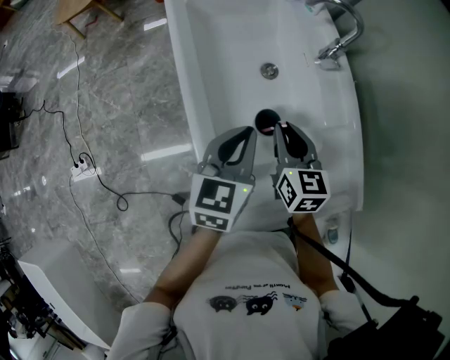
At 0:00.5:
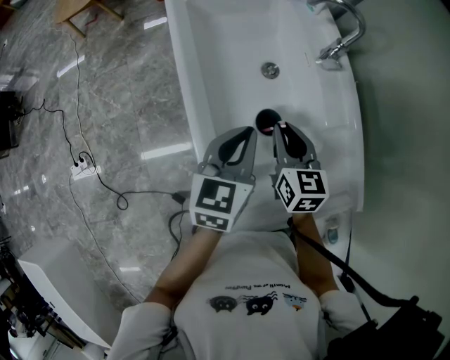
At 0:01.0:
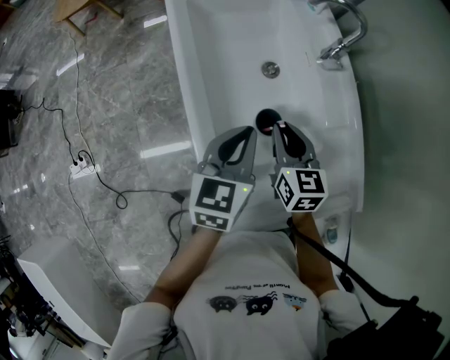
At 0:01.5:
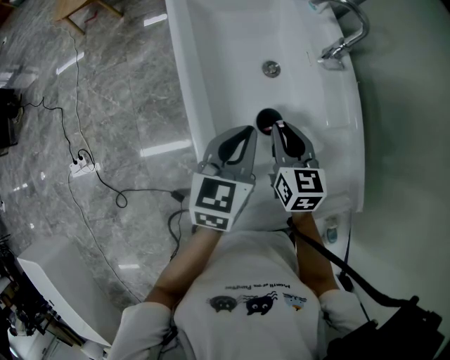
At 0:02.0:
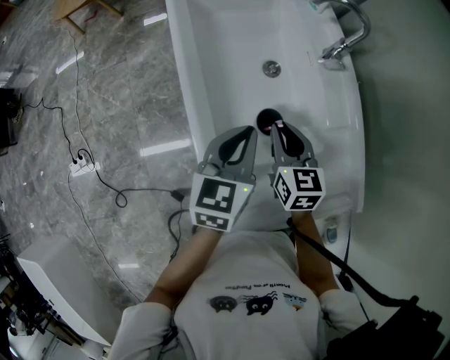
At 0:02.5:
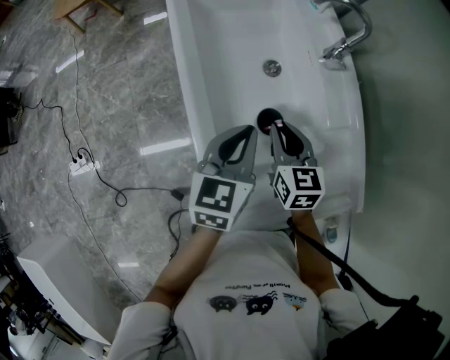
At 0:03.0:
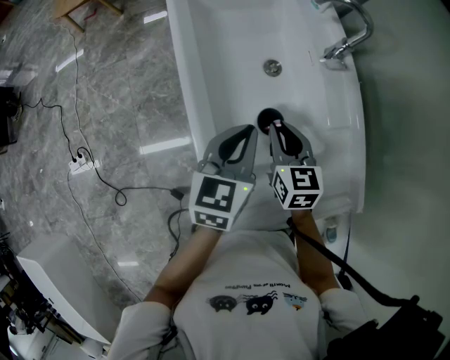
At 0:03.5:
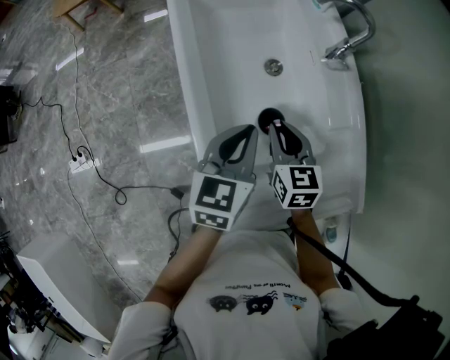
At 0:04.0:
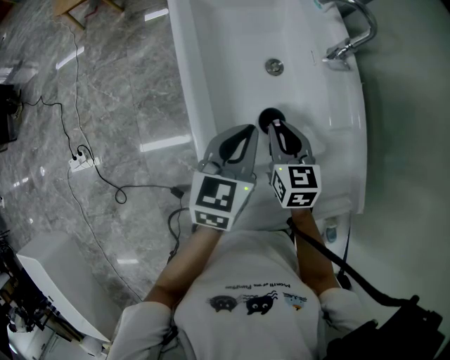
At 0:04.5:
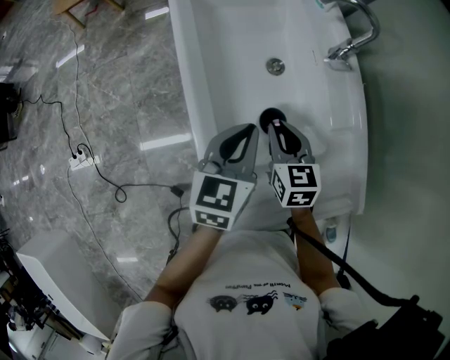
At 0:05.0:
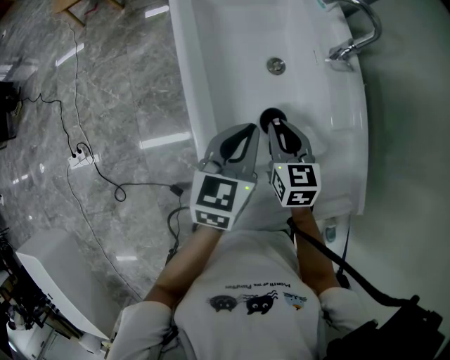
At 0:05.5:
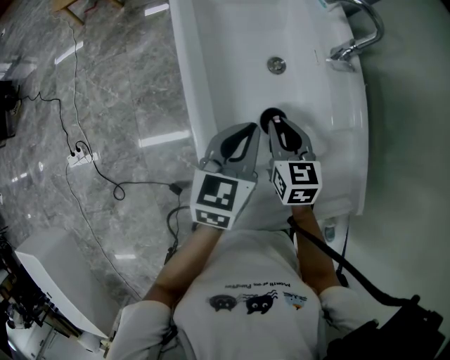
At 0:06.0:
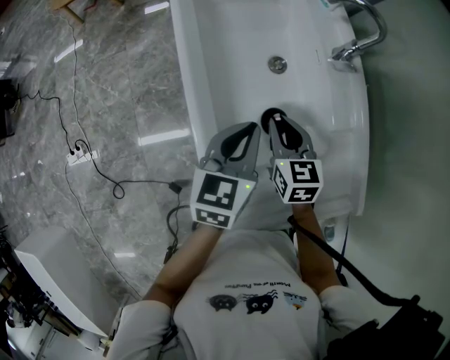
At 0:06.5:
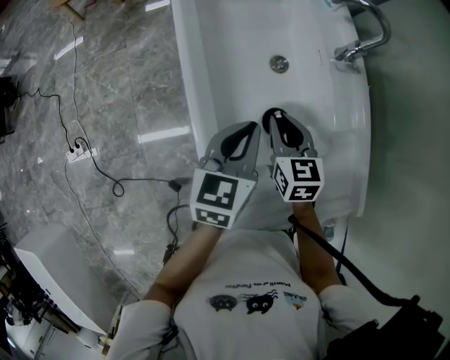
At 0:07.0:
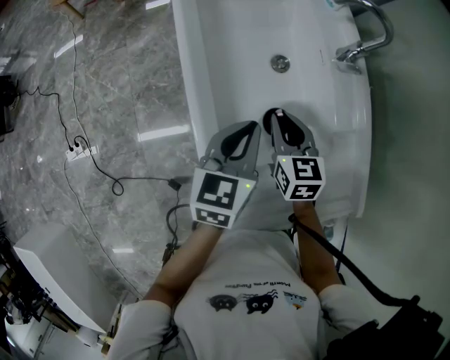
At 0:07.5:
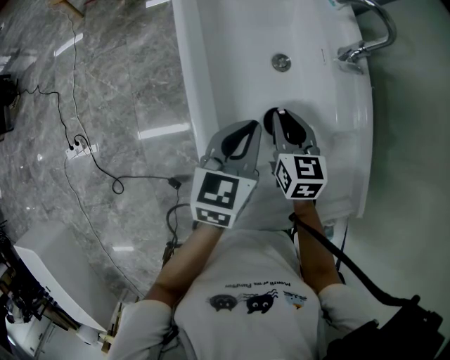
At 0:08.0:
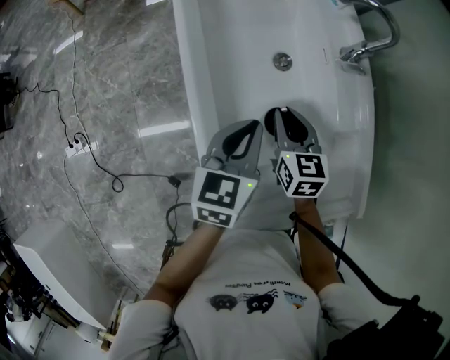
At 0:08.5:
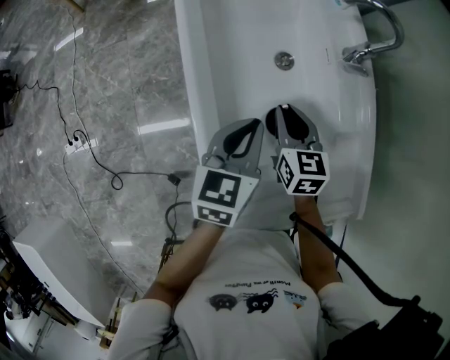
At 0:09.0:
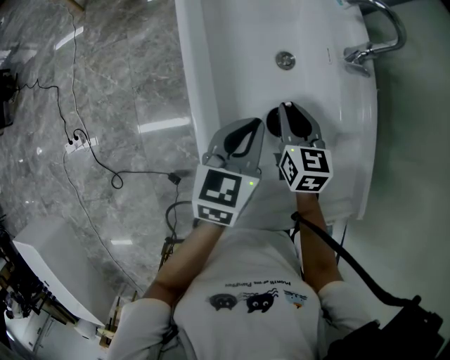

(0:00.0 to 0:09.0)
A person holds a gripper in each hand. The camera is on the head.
0:00.0 - 0:04.5: The grippers stay close to where they were, moving slightly.
0:04.5 - 0:09.0: The grippers move only a little.

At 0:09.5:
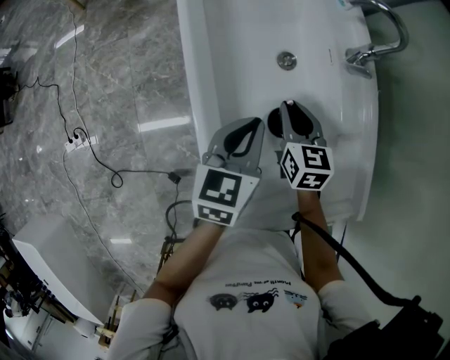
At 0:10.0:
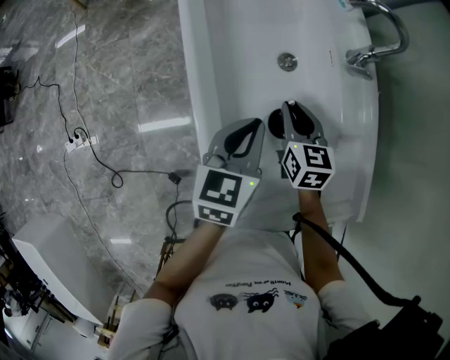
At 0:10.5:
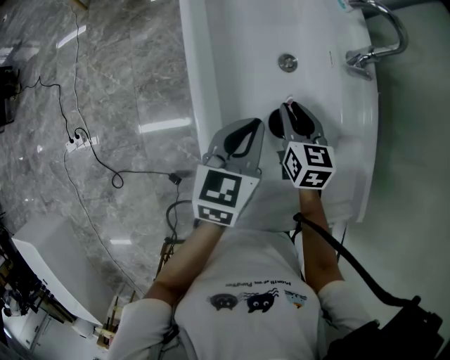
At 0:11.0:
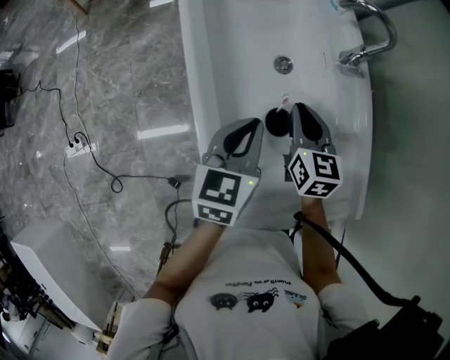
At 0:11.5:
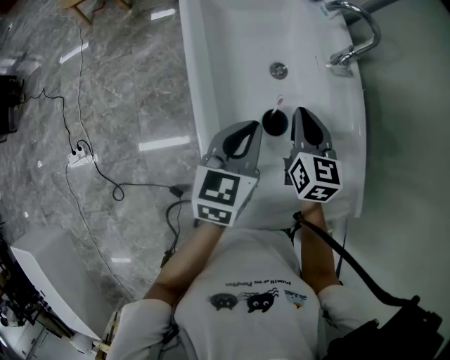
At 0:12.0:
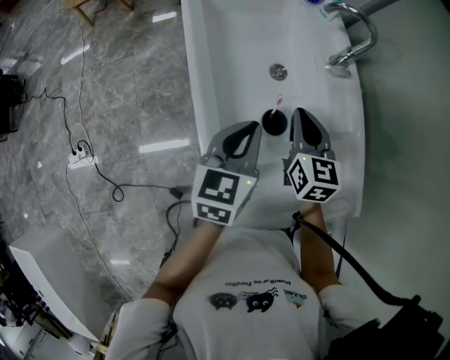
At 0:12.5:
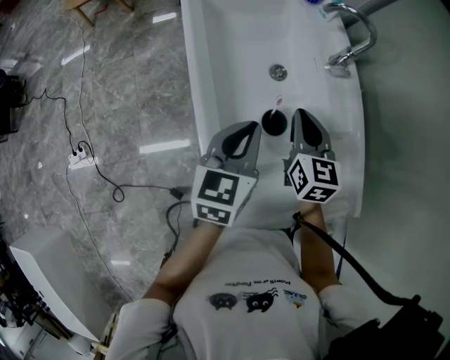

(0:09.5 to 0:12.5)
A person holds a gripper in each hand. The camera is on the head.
0:09.5 - 0:11.0: The grippers move only a little.
0:11.0 - 0:12.5: The grippers stay close to where they were, moving slightly.

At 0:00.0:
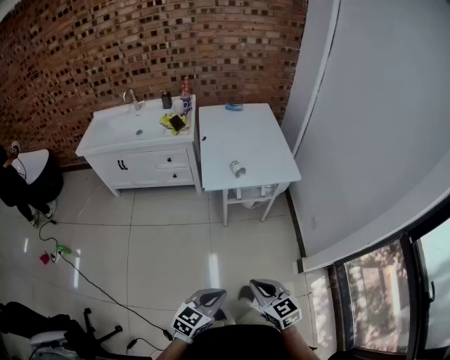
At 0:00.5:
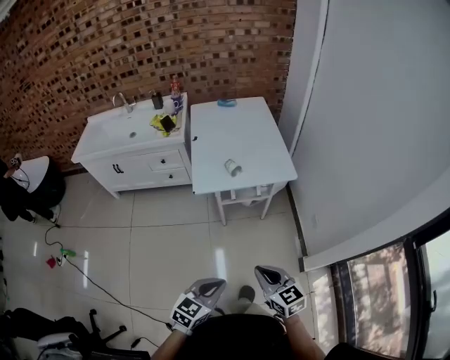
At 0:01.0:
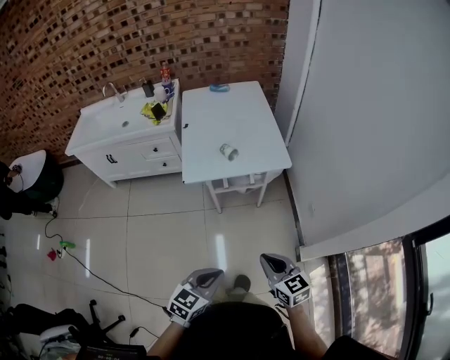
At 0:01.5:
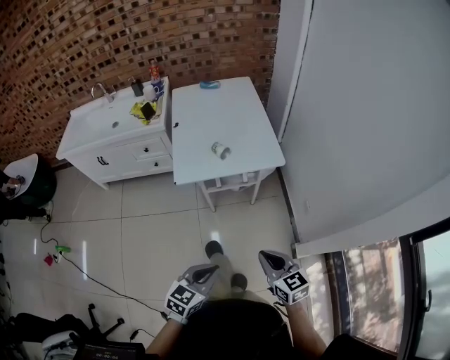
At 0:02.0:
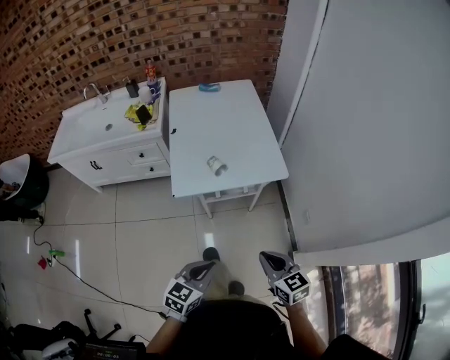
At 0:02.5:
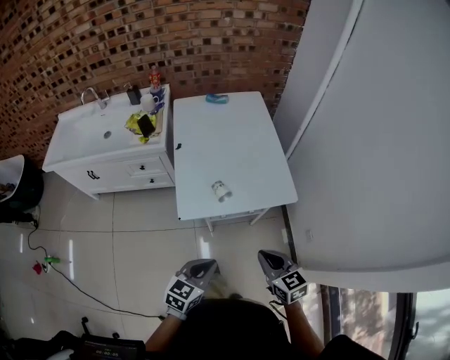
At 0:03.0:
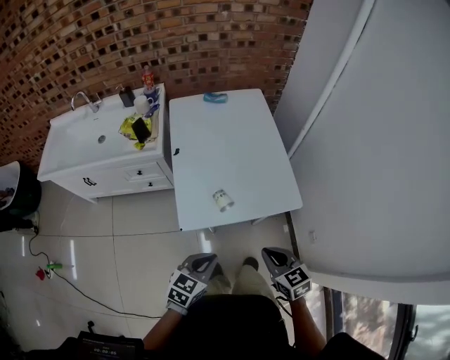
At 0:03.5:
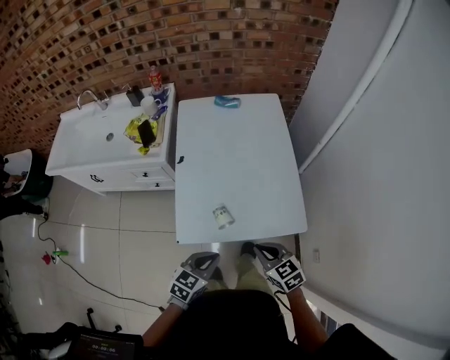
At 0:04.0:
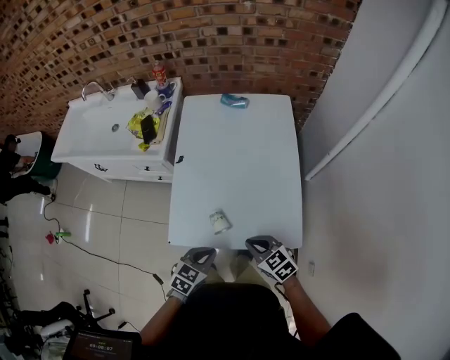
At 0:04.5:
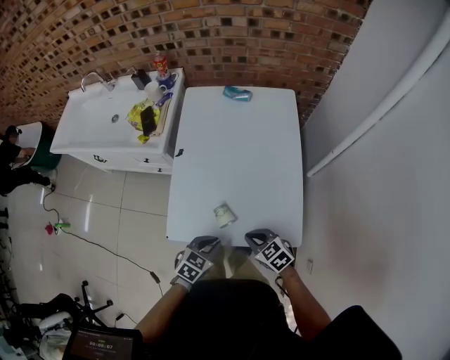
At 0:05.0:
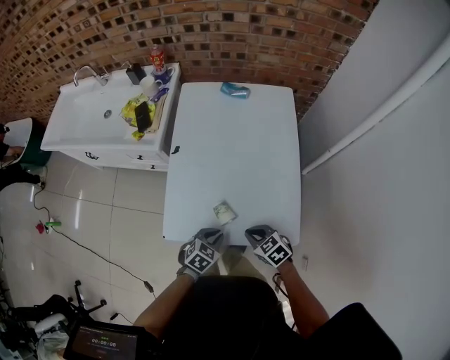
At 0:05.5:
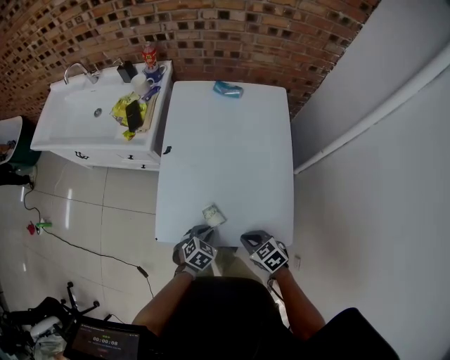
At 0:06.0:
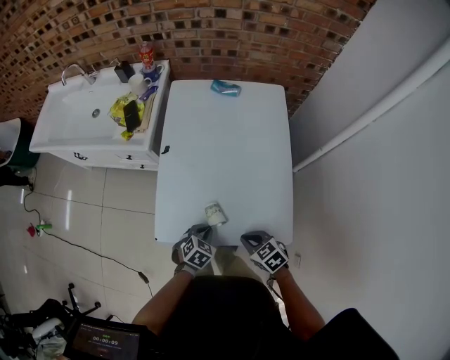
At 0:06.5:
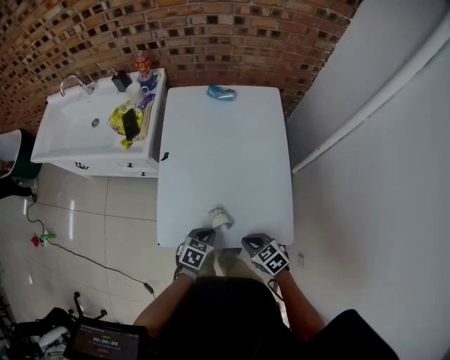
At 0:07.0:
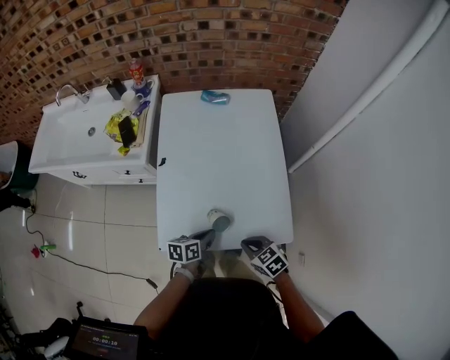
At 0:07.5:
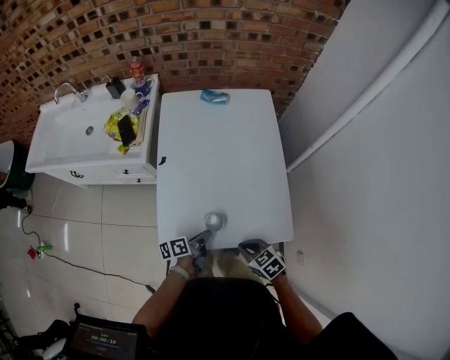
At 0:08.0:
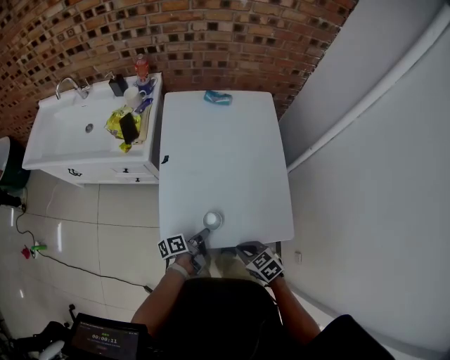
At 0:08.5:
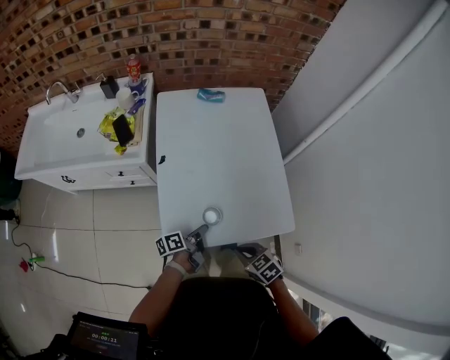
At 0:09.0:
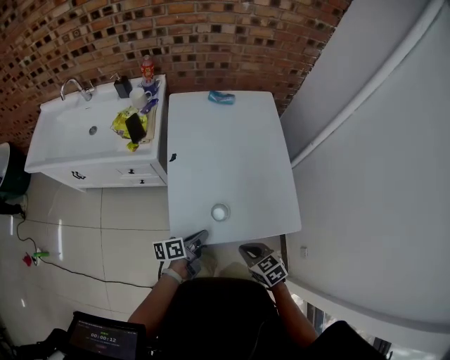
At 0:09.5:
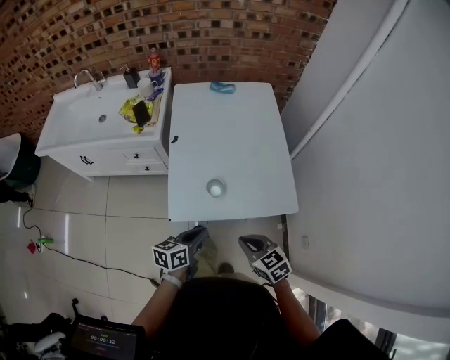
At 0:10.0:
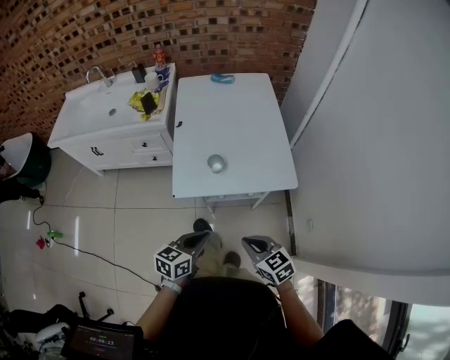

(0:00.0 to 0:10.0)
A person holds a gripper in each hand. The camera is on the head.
0:00.0 - 0:02.0: The right gripper is displaced forward and to the right by roughly 25 cm; the left gripper moves forward, approximately 25 cm.
0:02.0 - 0:04.0: Both grippers travel together forward, about 35 cm. The right gripper changes its angle by roughly 30 degrees.
0:04.0 - 0:06.0: The left gripper is displaced downward and forward by approximately 10 cm. Meanwhile the right gripper travels downward by approximately 5 cm.
0:06.0 - 0:08.0: The right gripper ends up roughly 5 cm from where it was. The left gripper rolls counterclockwise, seen from behind, by about 80 degrees.
0:08.0 - 0:10.0: The left gripper goes some 30 cm backward and upward, and rotates around the line of its fingers by roughly 60 degrees, clockwise from behind; the right gripper travels backward by approximately 20 cm, and swivels roughly 20 degrees.

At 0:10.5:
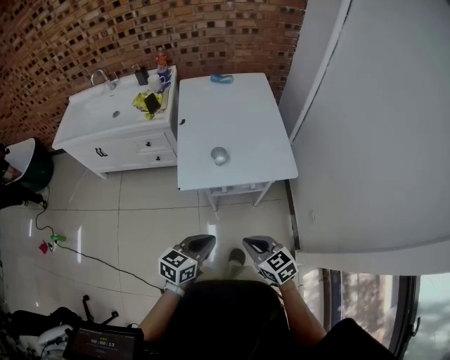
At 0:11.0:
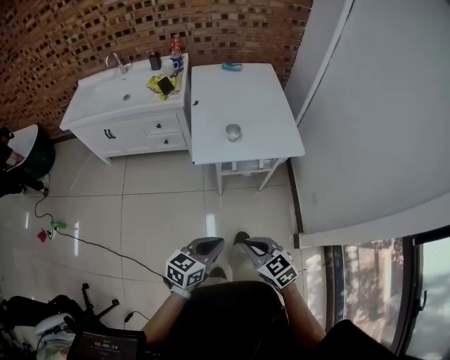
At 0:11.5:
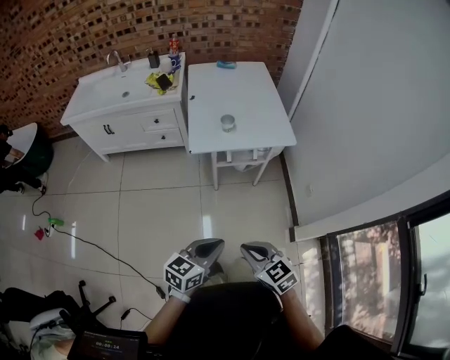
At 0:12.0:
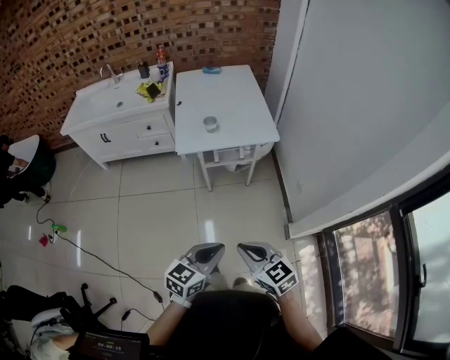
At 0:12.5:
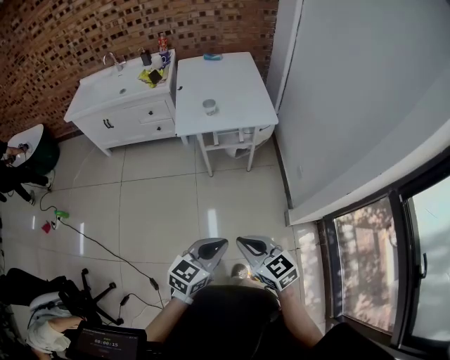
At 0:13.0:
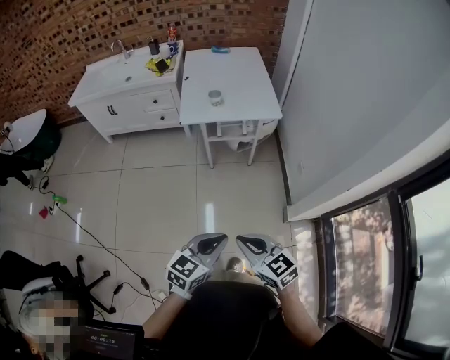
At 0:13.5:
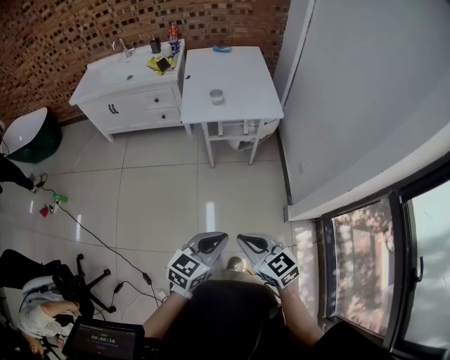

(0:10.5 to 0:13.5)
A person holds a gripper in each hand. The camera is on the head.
0:10.5 - 0:12.0: Both grippers move backward, roughly 25 cm.
0:12.0 - 0:13.5: The grippers both shift backward by about 10 cm.

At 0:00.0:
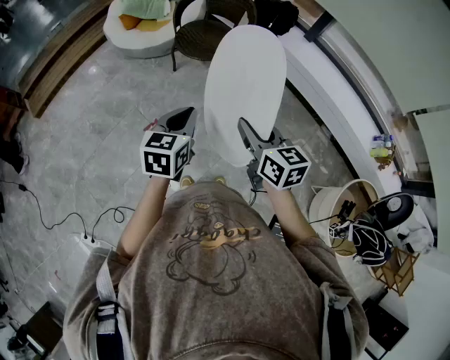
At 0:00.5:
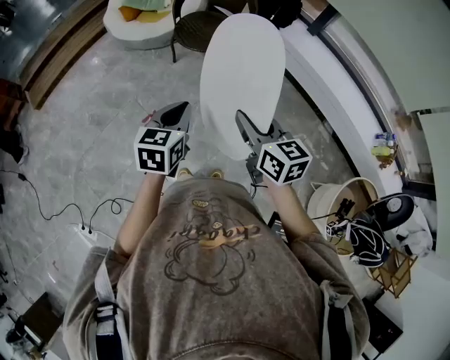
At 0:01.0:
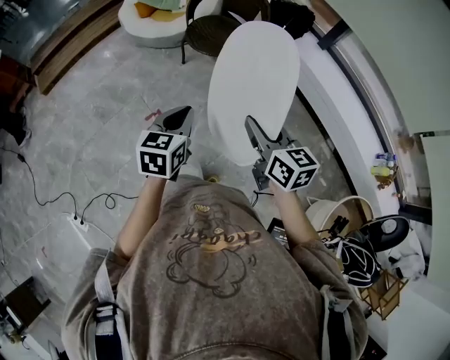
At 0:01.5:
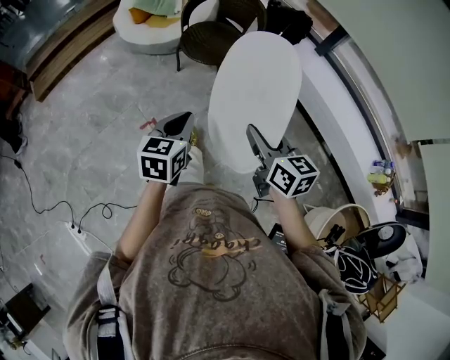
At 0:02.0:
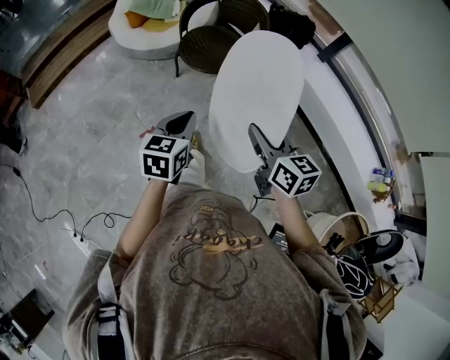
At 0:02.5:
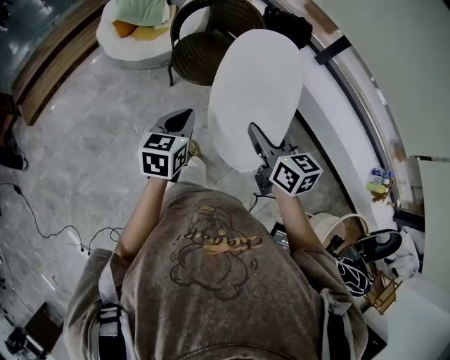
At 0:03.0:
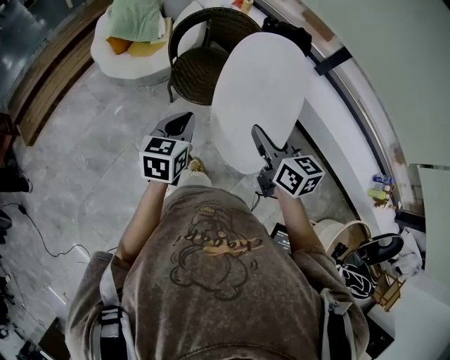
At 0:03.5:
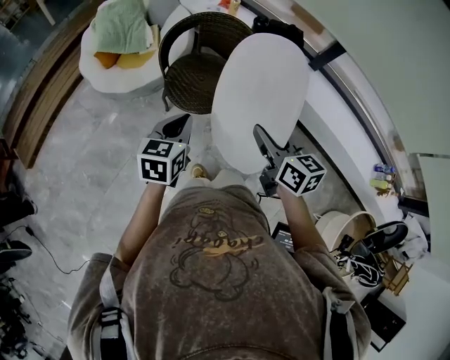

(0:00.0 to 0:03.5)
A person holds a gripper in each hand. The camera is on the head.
0:00.0 - 0:02.0: The left gripper goes some 15 cm forward, while the right gripper shifts about 15 cm forward and to the right.
0:02.0 - 0:03.5: Both grippers travel together forward, about 25 cm.
